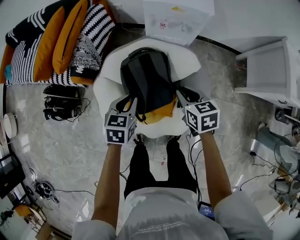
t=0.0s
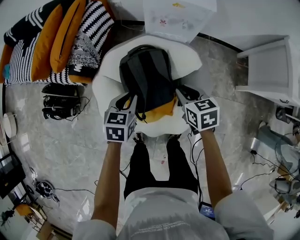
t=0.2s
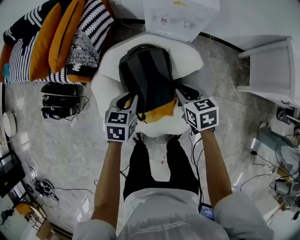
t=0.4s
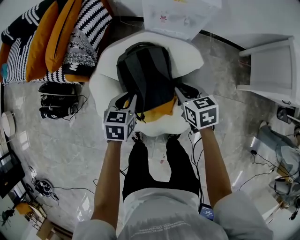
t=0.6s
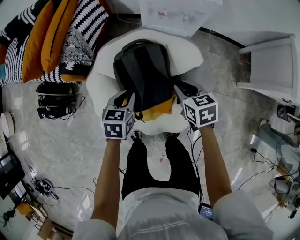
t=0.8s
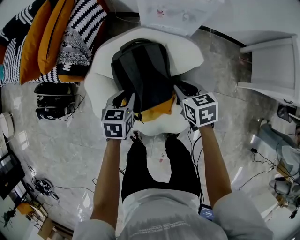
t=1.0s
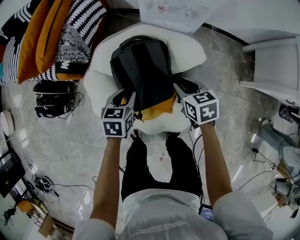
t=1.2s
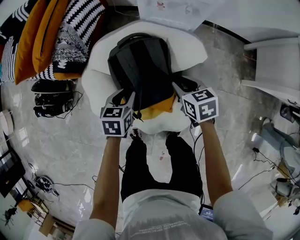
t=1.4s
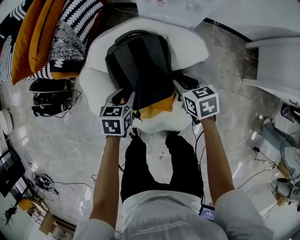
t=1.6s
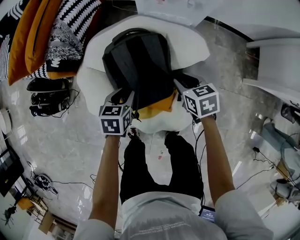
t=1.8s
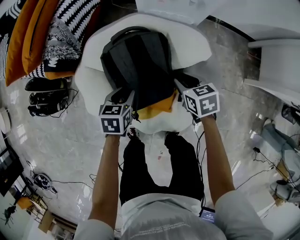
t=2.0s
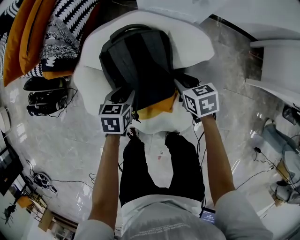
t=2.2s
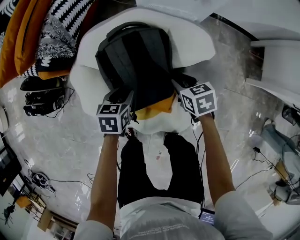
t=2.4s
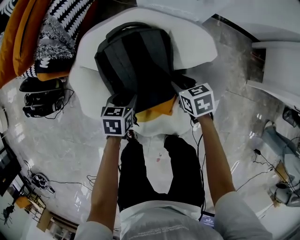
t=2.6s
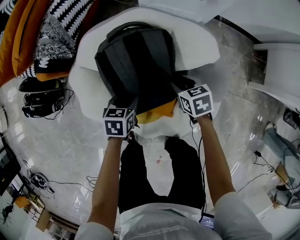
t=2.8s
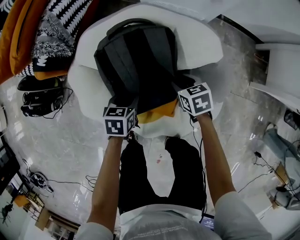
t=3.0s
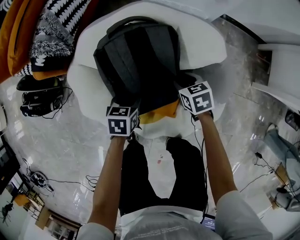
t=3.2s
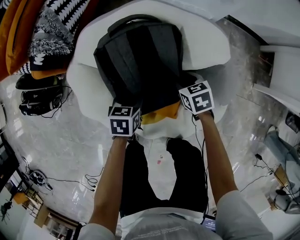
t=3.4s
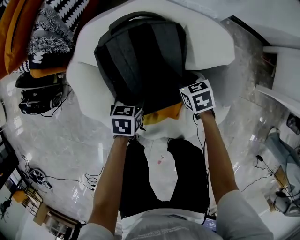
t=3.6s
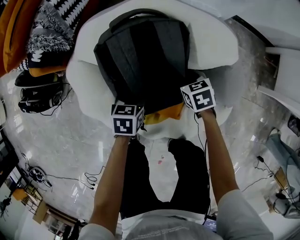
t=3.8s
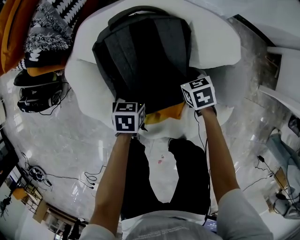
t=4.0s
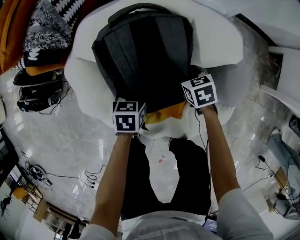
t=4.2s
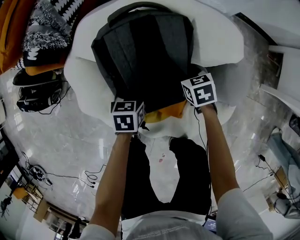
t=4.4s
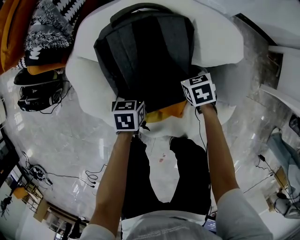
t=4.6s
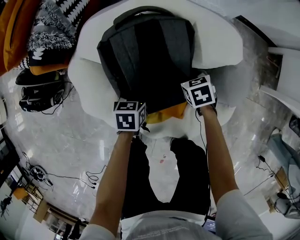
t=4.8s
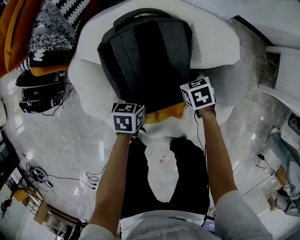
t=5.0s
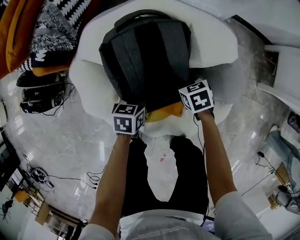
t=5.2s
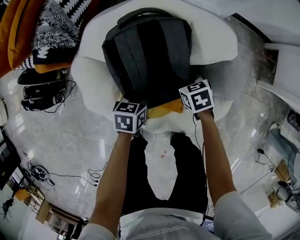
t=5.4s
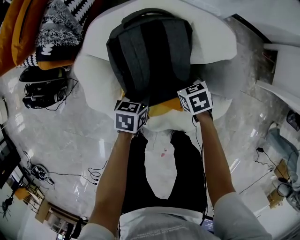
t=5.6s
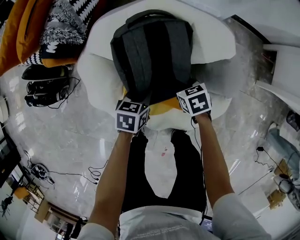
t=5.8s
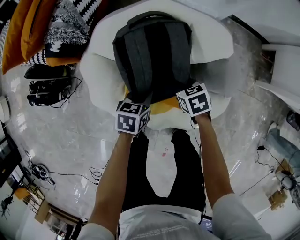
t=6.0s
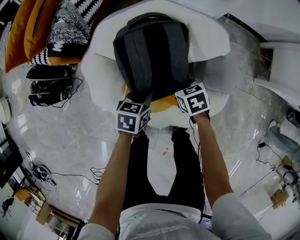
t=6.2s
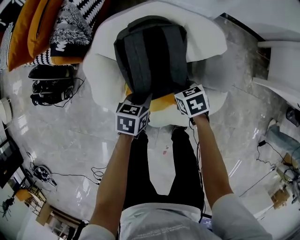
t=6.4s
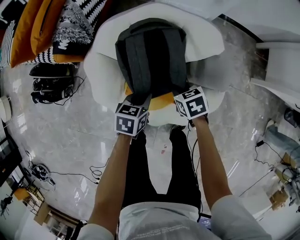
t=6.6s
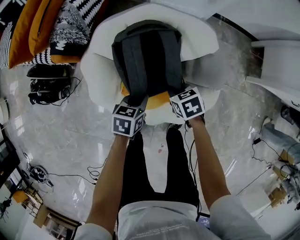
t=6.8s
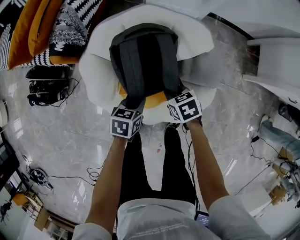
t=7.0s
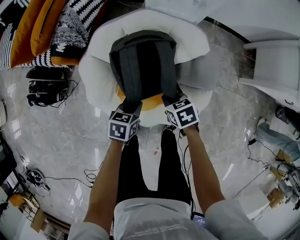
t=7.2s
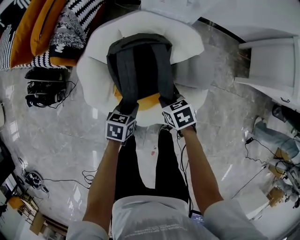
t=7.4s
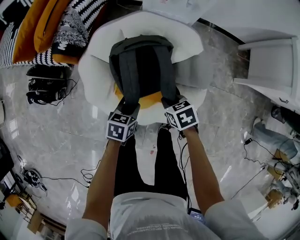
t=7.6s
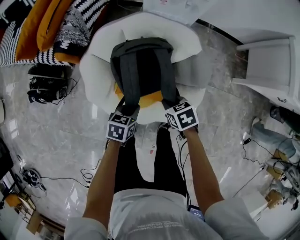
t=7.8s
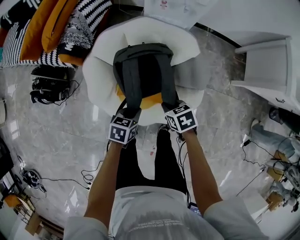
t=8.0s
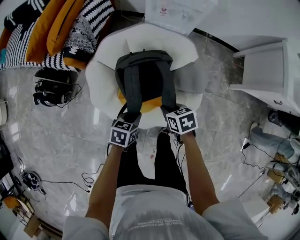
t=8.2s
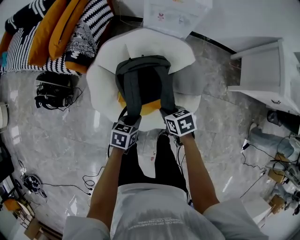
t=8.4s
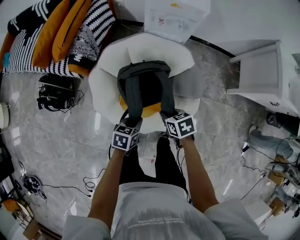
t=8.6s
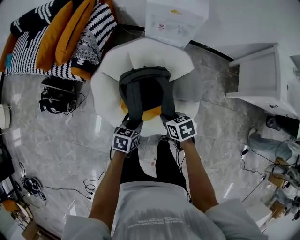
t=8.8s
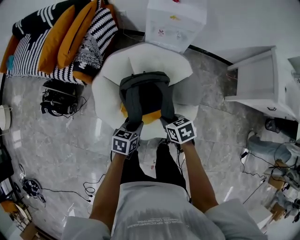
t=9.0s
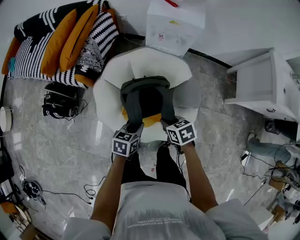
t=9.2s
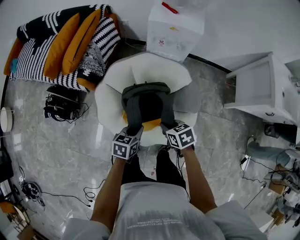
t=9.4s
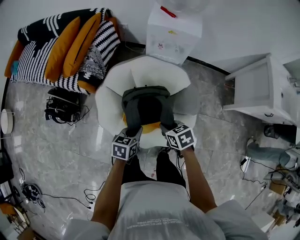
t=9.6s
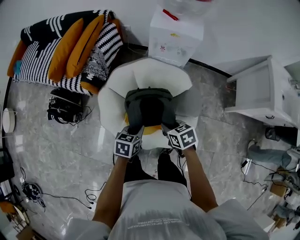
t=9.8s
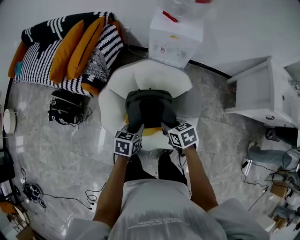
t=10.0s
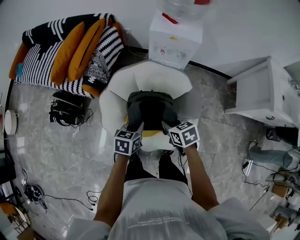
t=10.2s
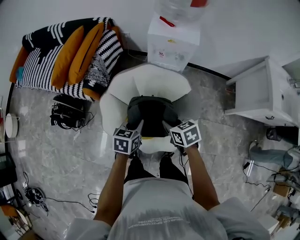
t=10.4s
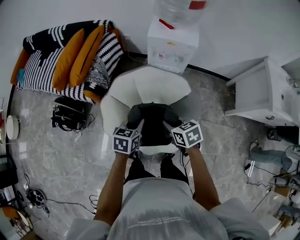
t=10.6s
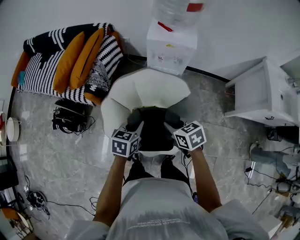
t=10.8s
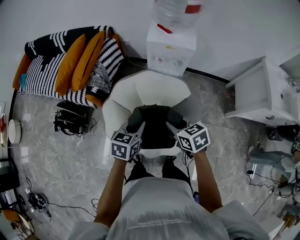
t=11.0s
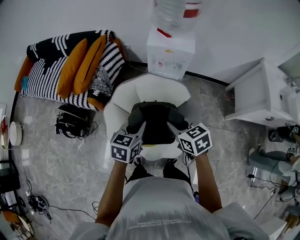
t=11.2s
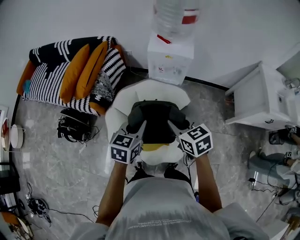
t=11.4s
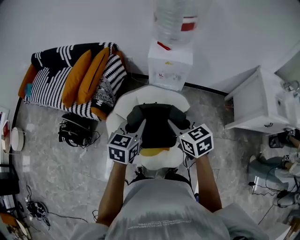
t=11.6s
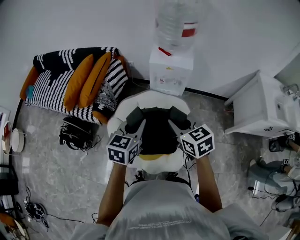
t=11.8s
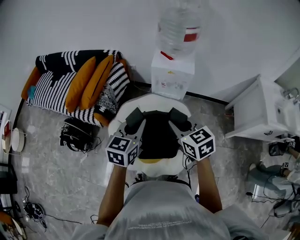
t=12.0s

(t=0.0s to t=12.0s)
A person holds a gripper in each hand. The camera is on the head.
t=0.0s - t=1.6s: The grippers both shift downward by roughly 15 cm.
t=1.6s - t=3.0s: The grippers both shift downward by roughly 15 cm.
t=3.0s - t=4.4s: The grippers both shift downward by roughly 5 cm.
t=4.4s - t=6.0s: The right gripper heads upward and backward, covering approximately 10 cm, and closes up, while the left gripper moves upward, some 10 cm, and closes its fingers.
t=6.0s - t=7.6s: The left gripper goes about 15 cm backward and upward. The right gripper travels upward and backward by some 15 cm.
t=7.6s - t=9.0s: The grippers both shift upward by some 10 cm.
t=9.0s - t=10.4s: The left gripper travels upward and forward by approximately 15 cm. Meanwhile the right gripper goes roughly 10 cm upward.
t=10.4s - t=12.0s: The two grippers go some 20 cm upward. The right gripper rotates approximately 30 degrees, while the left gripper changes its angle by roughly 30 degrees.

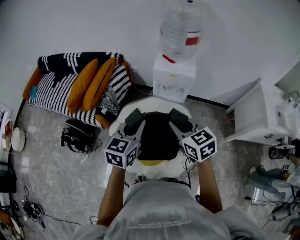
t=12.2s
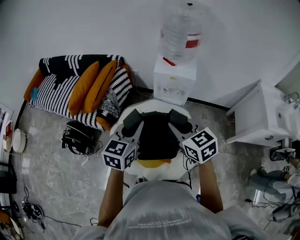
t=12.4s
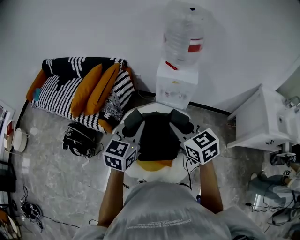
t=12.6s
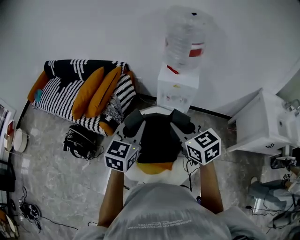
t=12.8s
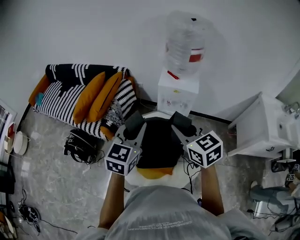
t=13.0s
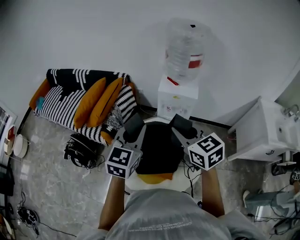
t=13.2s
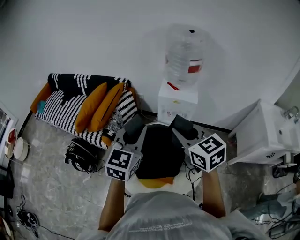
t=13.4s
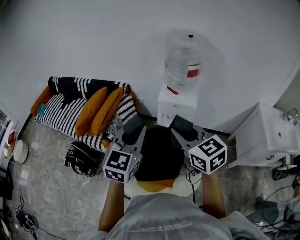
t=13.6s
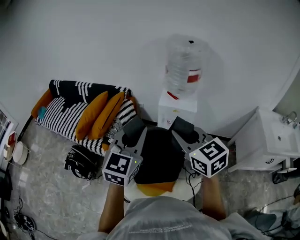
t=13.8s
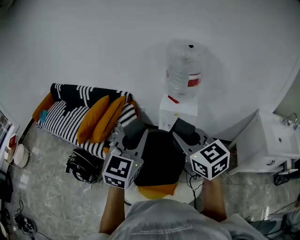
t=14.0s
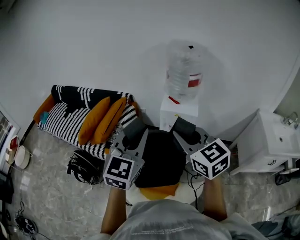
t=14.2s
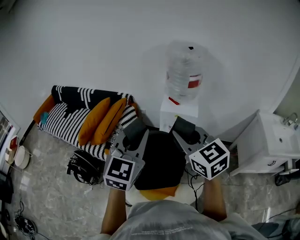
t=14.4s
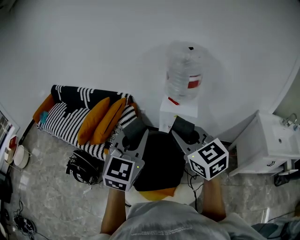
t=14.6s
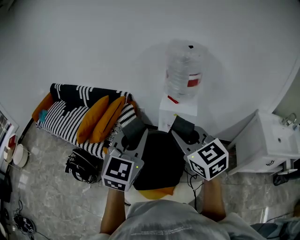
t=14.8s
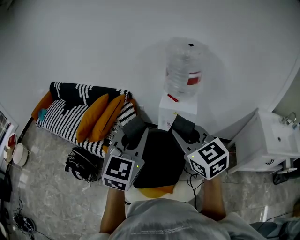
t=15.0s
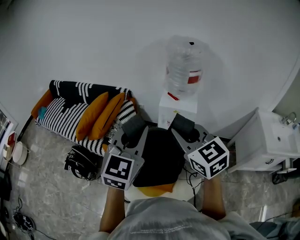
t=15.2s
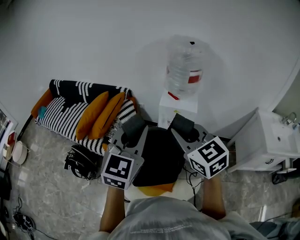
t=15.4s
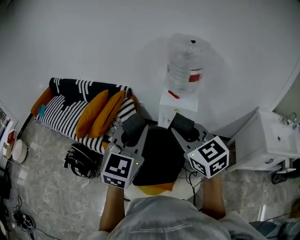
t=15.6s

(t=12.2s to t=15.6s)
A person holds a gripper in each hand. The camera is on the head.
t=12.2s - t=13.8s: Both grippers travel together upward, approximately 15 cm. The left gripper rotates about 20 degrees.
t=13.8s - t=15.6s: The grippers move only a little.

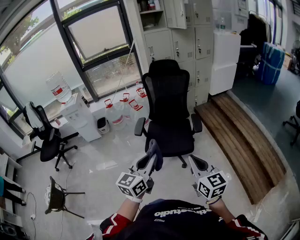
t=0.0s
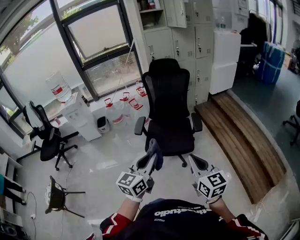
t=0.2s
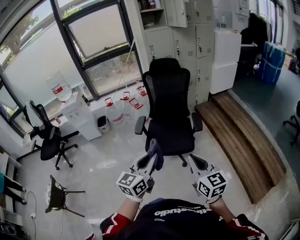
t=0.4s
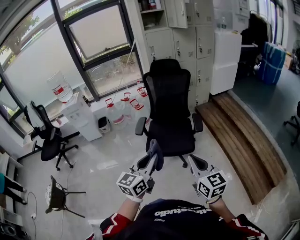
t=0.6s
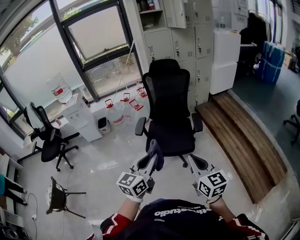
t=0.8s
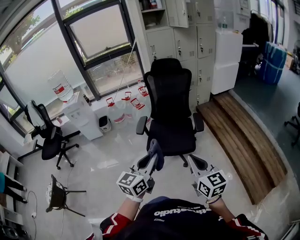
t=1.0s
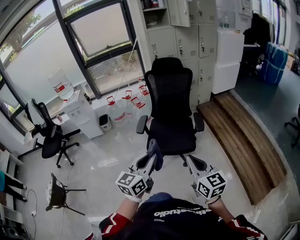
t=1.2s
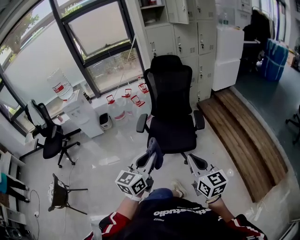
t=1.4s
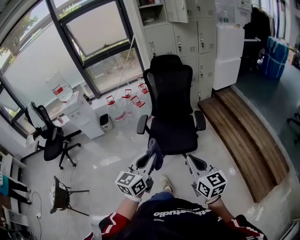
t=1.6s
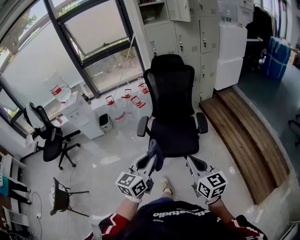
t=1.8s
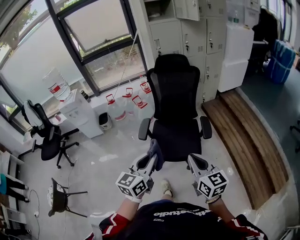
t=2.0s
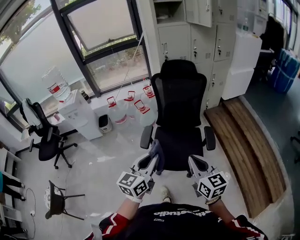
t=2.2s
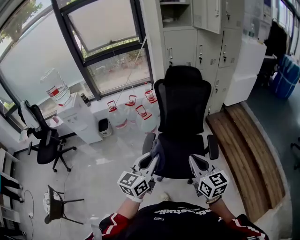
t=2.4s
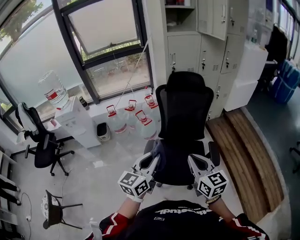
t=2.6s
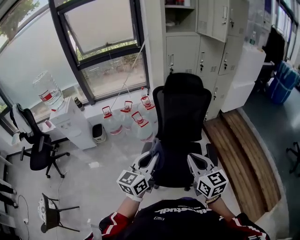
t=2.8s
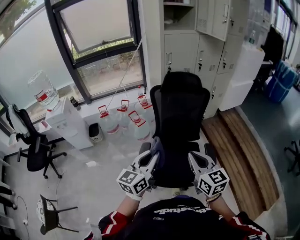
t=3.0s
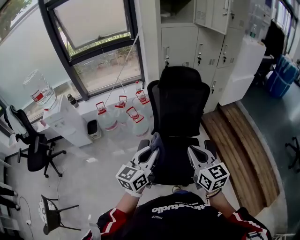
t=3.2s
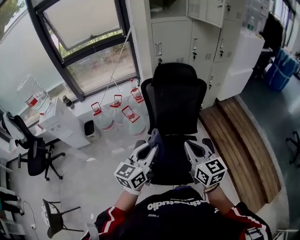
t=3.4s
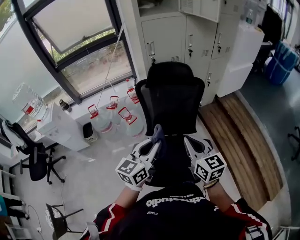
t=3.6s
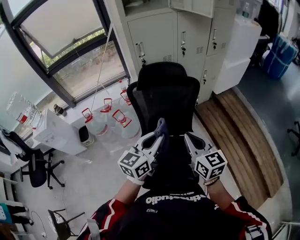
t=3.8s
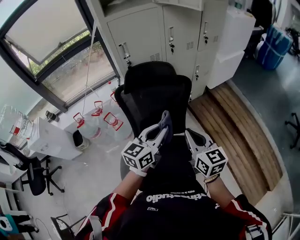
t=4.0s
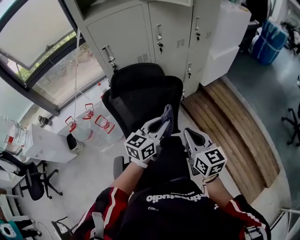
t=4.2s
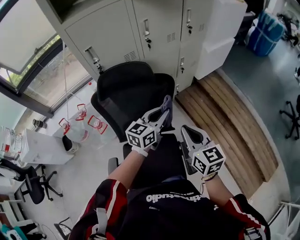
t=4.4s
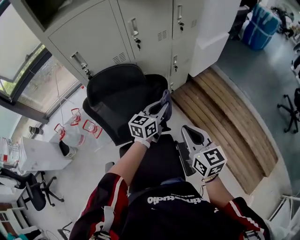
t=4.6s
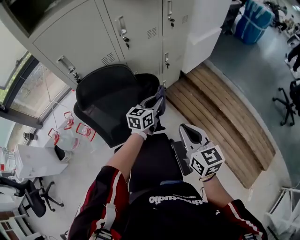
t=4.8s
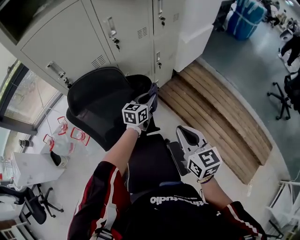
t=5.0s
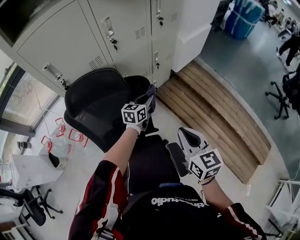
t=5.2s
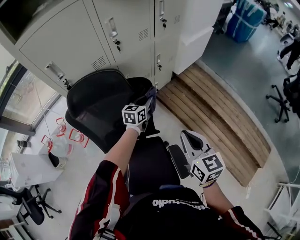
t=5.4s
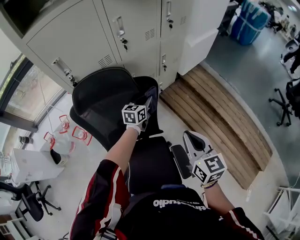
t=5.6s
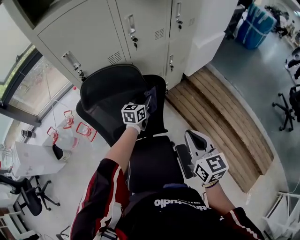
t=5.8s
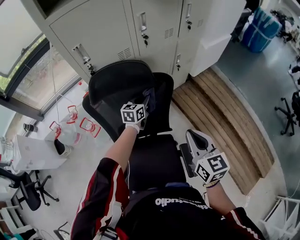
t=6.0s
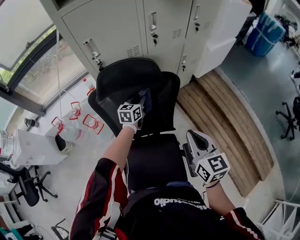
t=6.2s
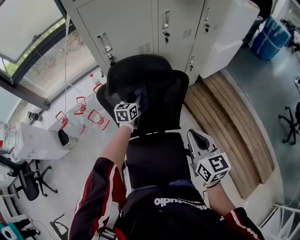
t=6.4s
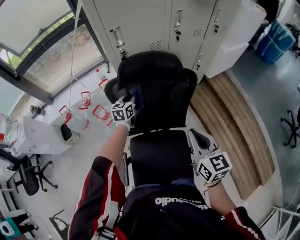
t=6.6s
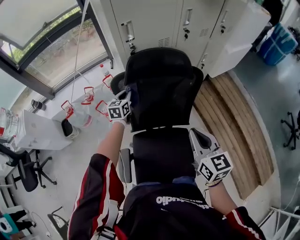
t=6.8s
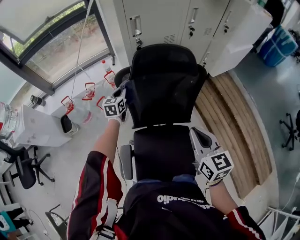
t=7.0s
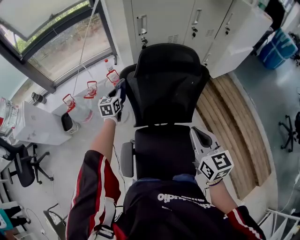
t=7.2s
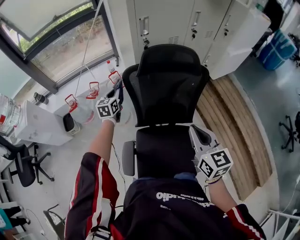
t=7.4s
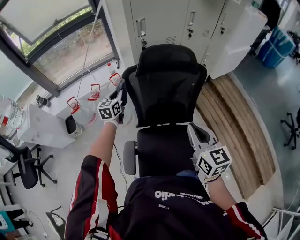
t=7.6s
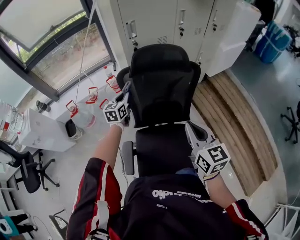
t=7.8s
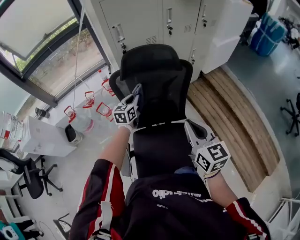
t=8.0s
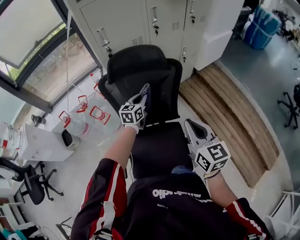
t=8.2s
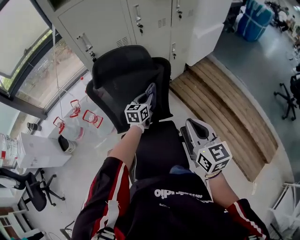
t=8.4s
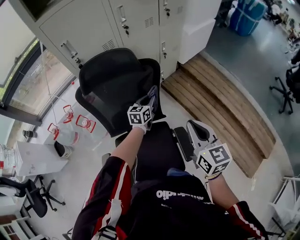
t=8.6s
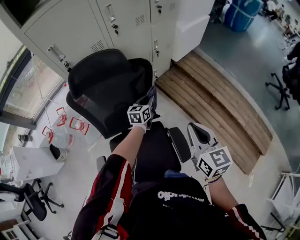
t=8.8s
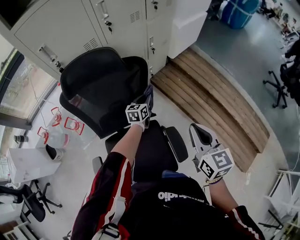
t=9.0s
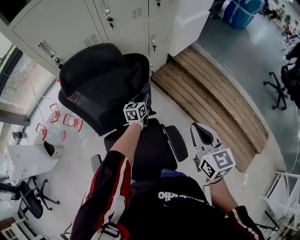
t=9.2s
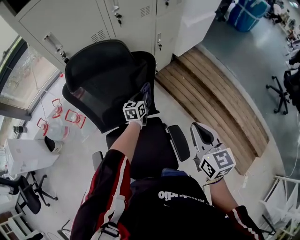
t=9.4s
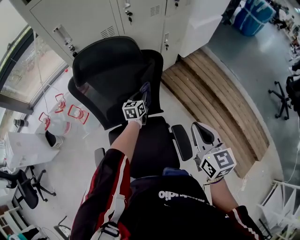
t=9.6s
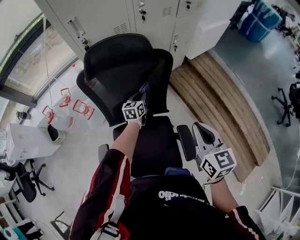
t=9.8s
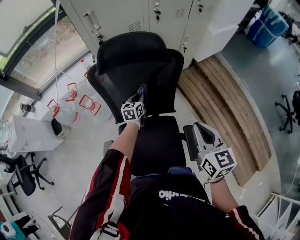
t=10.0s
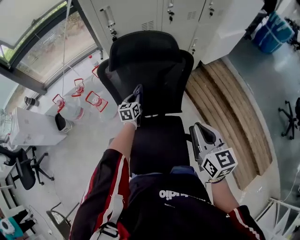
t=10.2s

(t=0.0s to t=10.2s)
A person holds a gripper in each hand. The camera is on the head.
t=0.0s - t=1.4s: The grippers make only small movements.
t=1.4s - t=3.0s: The two grippers travel together, forward, roughly 40 cm.
t=3.0s - t=4.4s: Both grippers are carried forward and to the right, approximately 50 cm. The left gripper rotates roughly 20 degrees.
t=4.4s - t=5.8s: The left gripper travels forward and downward by about 25 cm.
t=5.8s - t=7.2s: The left gripper is displaced to the left by about 40 cm, and changes its angle by approximately 30 degrees, while the right gripper is displaced to the left by roughly 20 cm.
t=7.2s - t=8.8s: The right gripper shifts approximately 25 cm to the right. Meanwhile the left gripper shifts roughly 50 cm to the right, and turns by roughly 30 degrees.
t=8.8s - t=10.2s: The right gripper moves to the left, approximately 15 cm. Meanwhile the left gripper shifts some 30 cm to the left, and turns by about 20 degrees.
